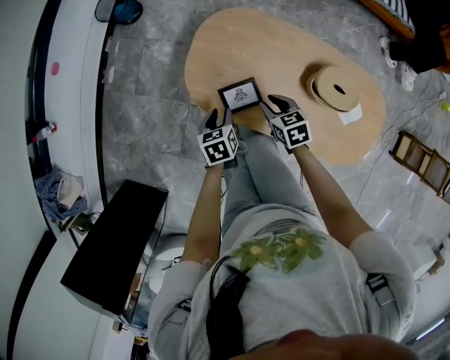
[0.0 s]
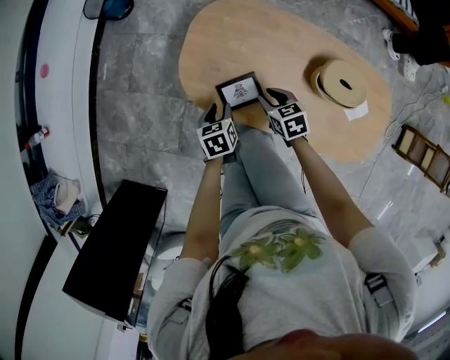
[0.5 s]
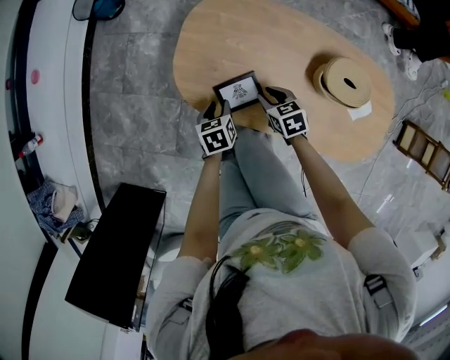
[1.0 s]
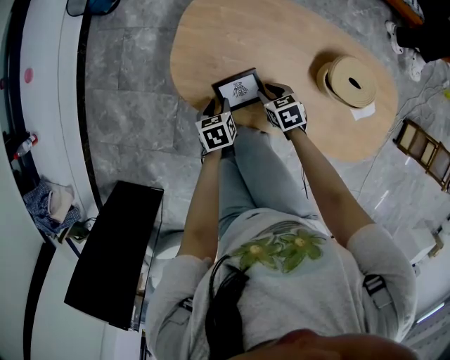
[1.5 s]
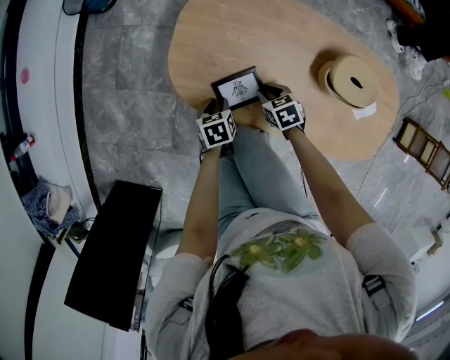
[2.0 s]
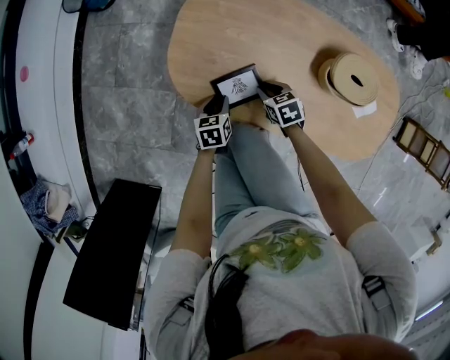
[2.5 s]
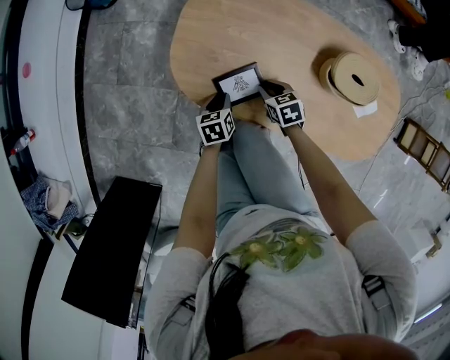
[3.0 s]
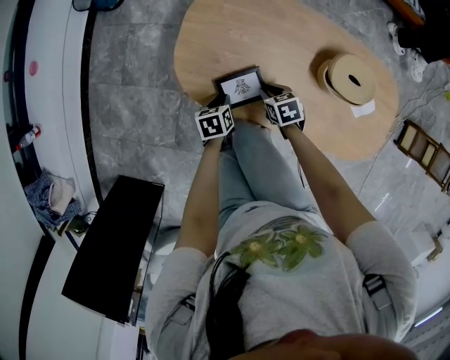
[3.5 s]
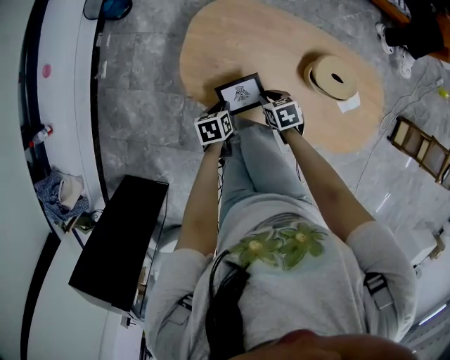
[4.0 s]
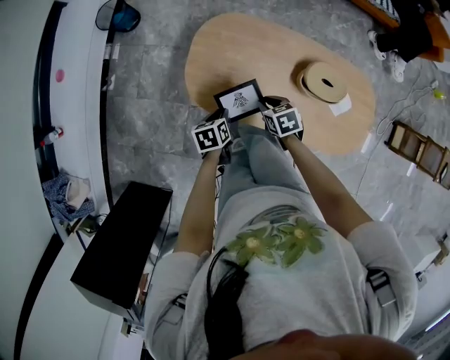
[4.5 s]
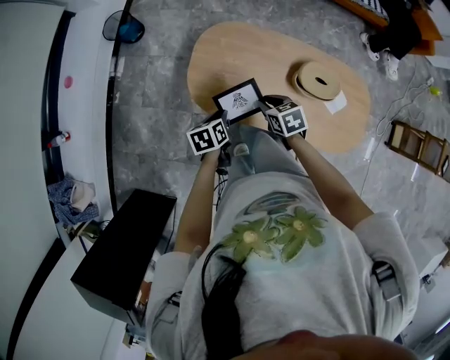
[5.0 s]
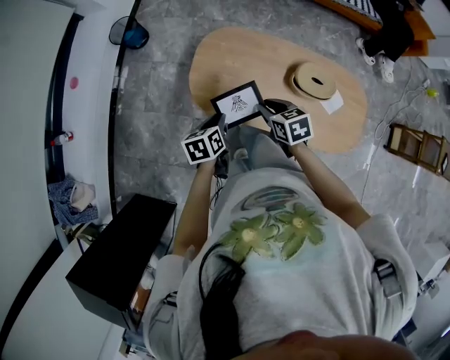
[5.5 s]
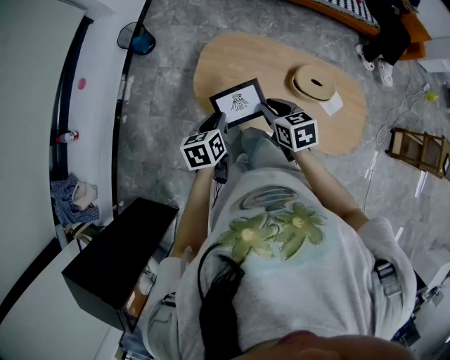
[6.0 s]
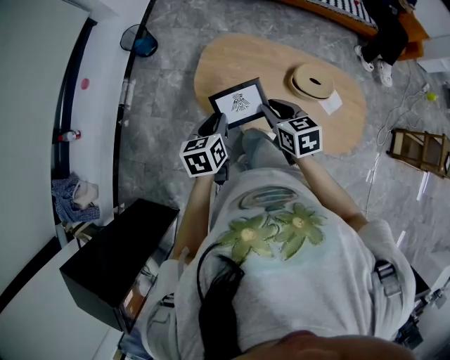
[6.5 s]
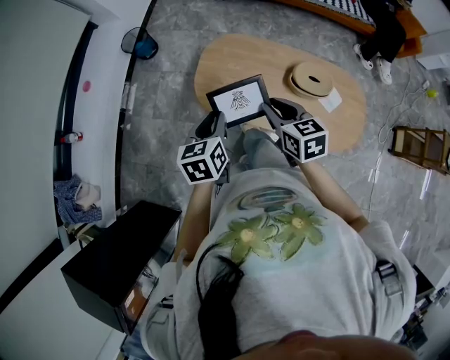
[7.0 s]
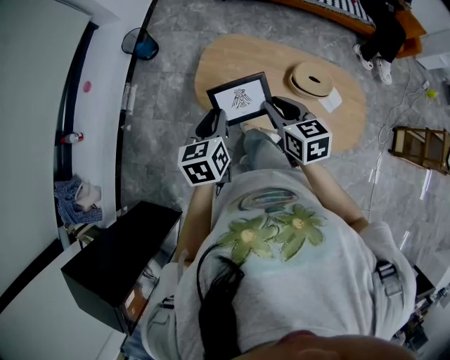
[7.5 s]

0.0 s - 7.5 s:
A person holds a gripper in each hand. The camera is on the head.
0.0 s - 2.0 s: Both grippers travel together downward, roughly 15 cm.
2.0 s - 4.0 s: Both grippers travel together upward, roughly 10 cm.
4.0 s - 5.5 s: The grippers both shift upward by some 20 cm.
5.5 s - 7.5 s: The grippers both shift upward by approximately 15 cm. The left gripper changes its angle by some 20 degrees, while the right gripper rotates some 20 degrees.

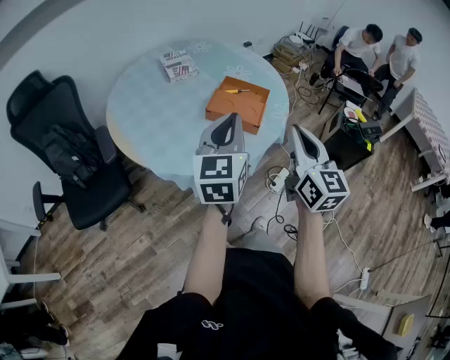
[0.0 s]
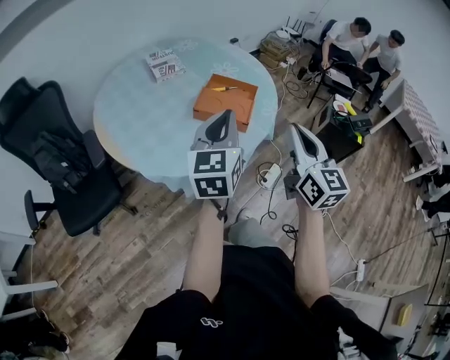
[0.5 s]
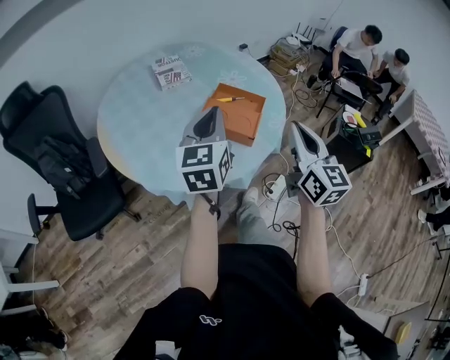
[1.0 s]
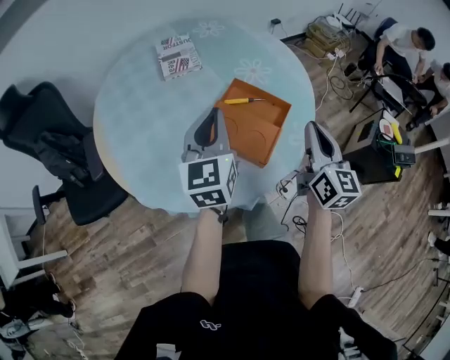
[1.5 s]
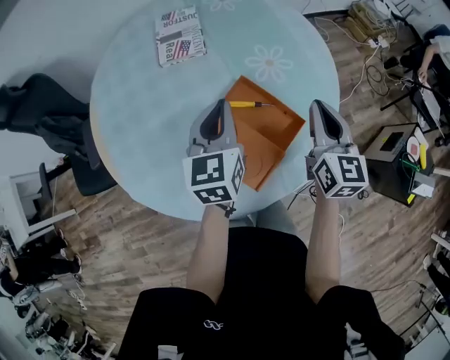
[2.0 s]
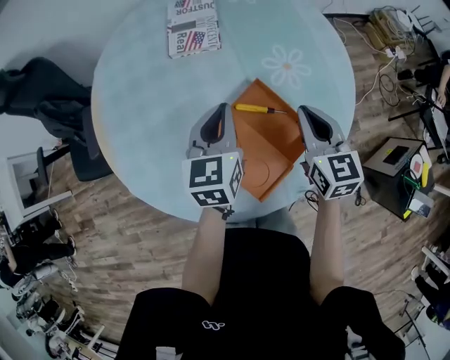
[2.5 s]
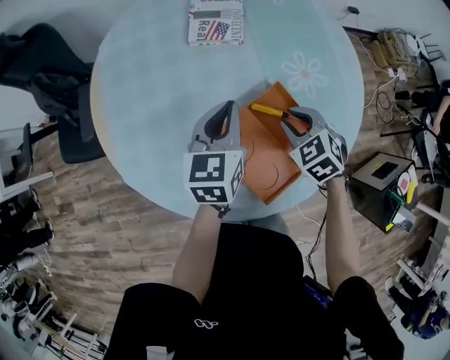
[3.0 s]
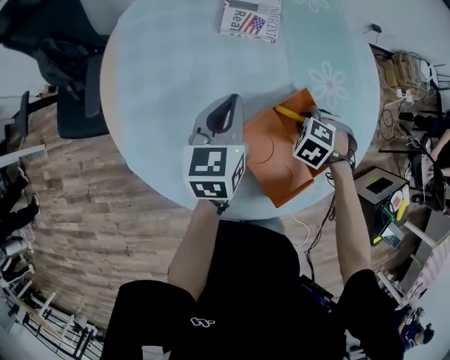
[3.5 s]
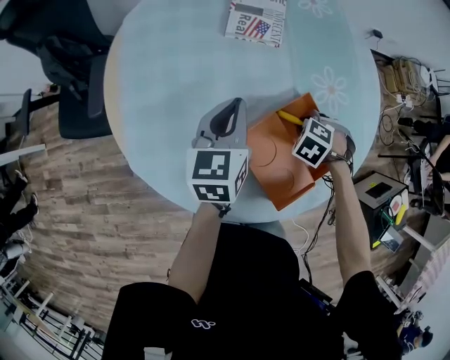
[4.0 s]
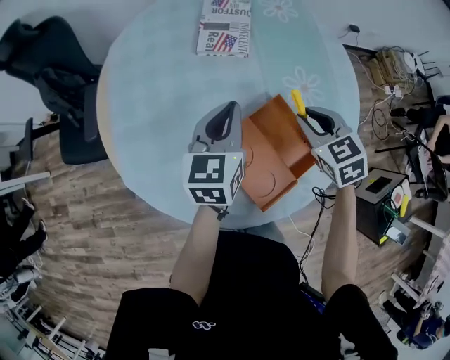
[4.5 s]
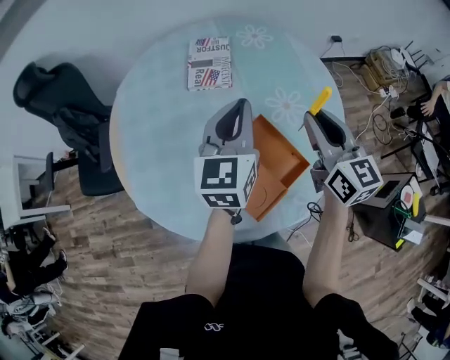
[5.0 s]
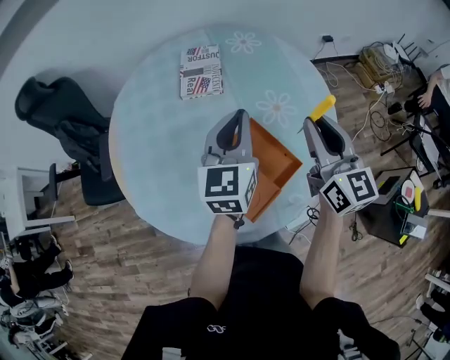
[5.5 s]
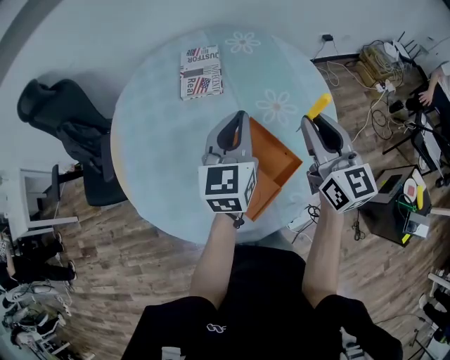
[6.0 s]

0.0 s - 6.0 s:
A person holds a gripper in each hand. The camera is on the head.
0.0 s - 2.0 s: The two grippers go about 40 cm forward. The left gripper swivels about 30 degrees.
2.0 s - 4.0 s: The right gripper heads downward, covering some 20 cm, and angles its fingers downward, by about 70 degrees; the left gripper shifts by about 15 cm.
4.0 s - 6.0 s: The left gripper changes place by roughly 25 cm, and changes its angle by roughly 20 degrees. The right gripper is displaced upward by some 30 cm, and angles its fingers upward, by about 80 degrees.

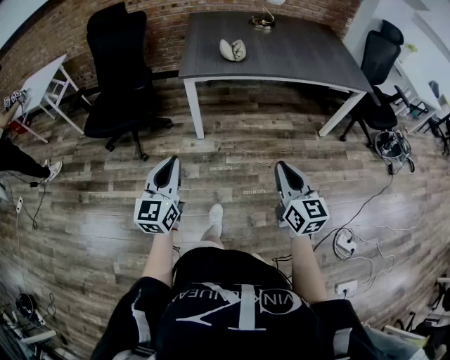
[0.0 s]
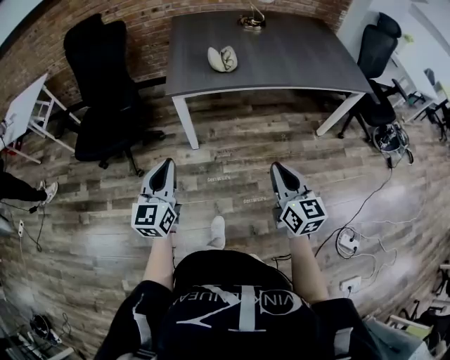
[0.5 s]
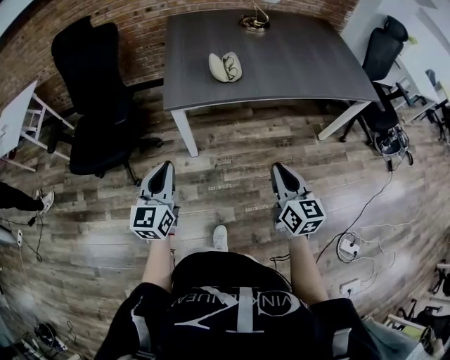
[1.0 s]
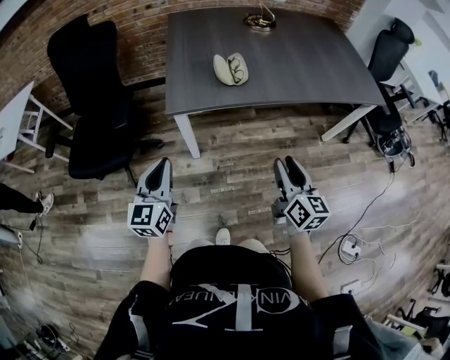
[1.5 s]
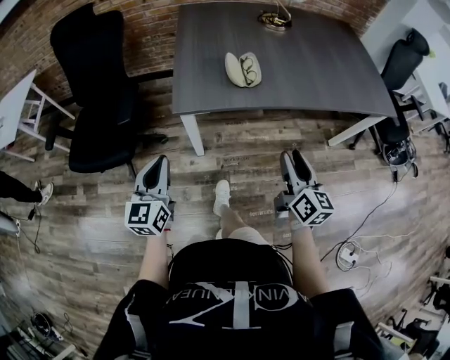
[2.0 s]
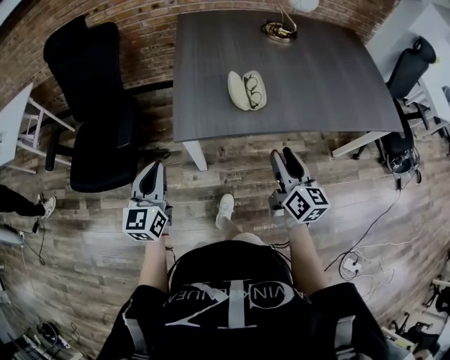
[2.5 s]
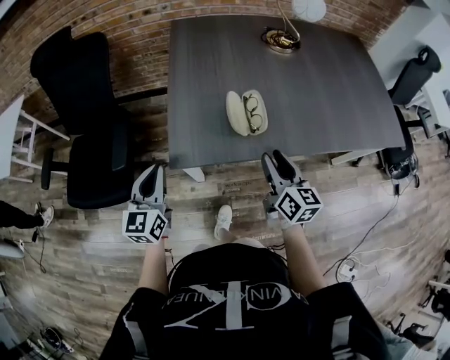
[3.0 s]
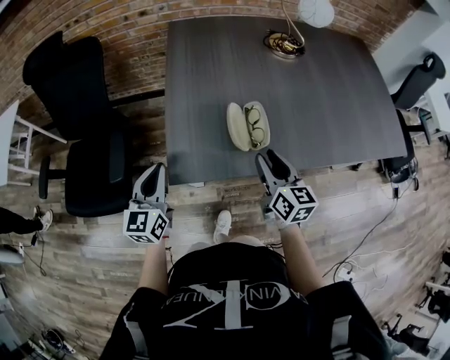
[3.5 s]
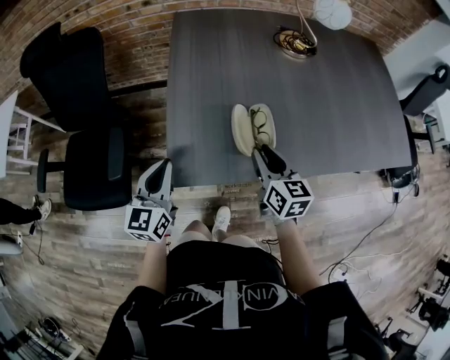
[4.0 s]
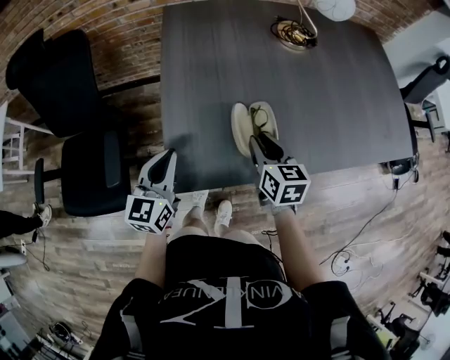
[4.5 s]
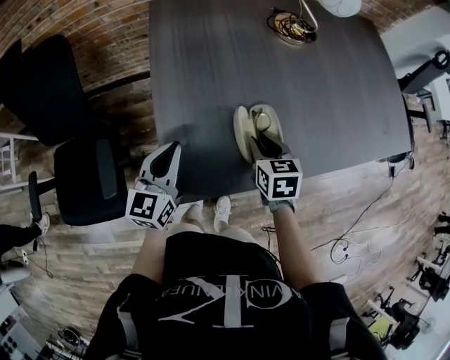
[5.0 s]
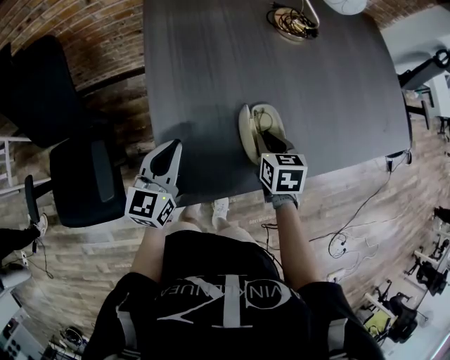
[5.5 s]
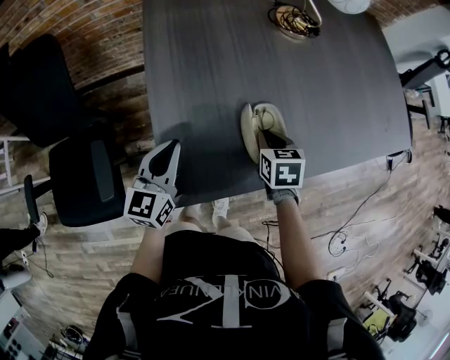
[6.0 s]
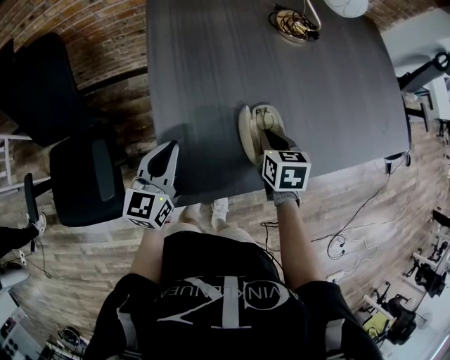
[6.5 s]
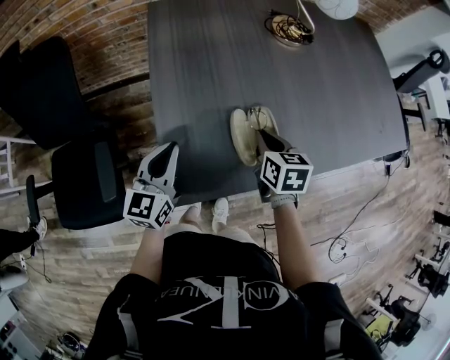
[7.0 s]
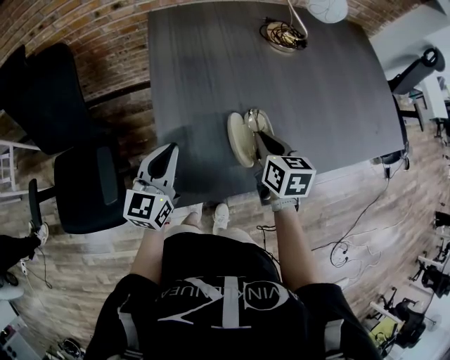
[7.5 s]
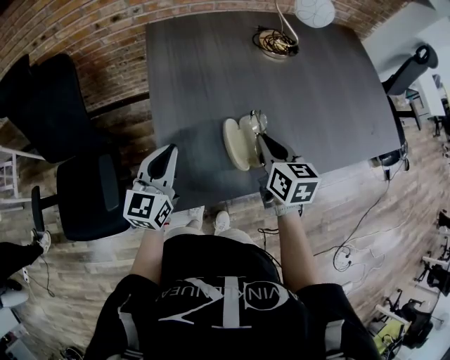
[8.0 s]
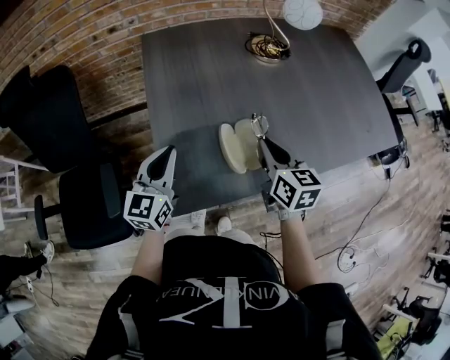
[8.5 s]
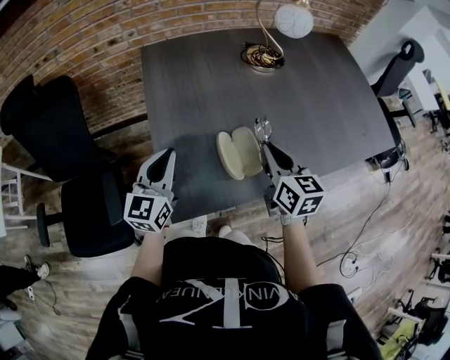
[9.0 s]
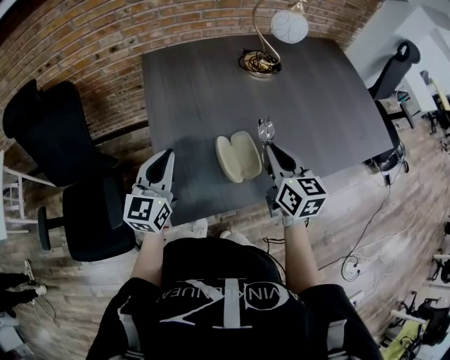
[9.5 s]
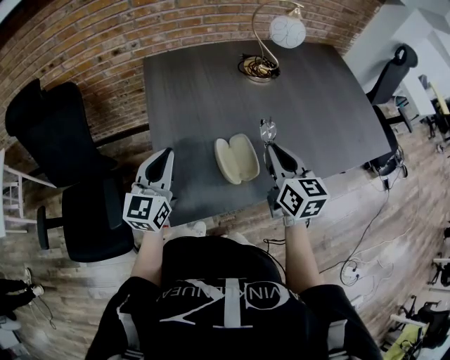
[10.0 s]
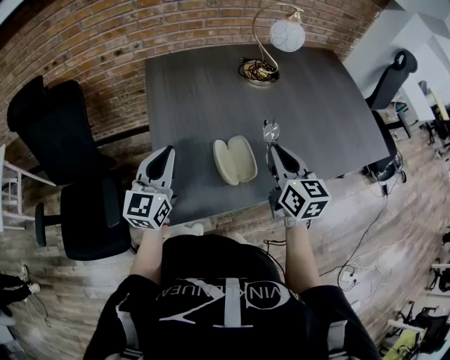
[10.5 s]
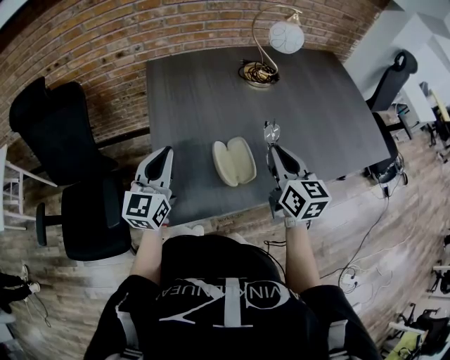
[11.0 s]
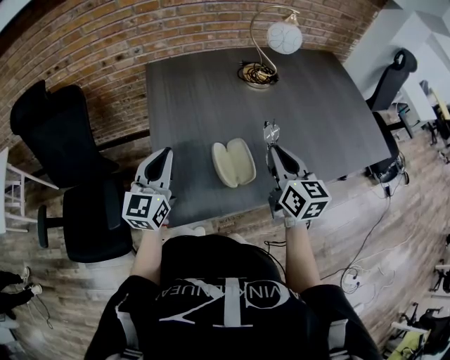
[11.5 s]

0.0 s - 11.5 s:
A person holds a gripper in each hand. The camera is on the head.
0.0 s - 2.0 s: Both grippers travel together forward, about 35 cm. The right gripper opens.
2.0 s - 4.0 s: Both grippers travel together forward, roughly 30 cm.
4.0 s - 6.0 s: The right gripper heads downward and forward, covering approximately 10 cm, and tilts its fingers approximately 30 degrees downward; the left gripper shifts about 10 cm forward.
6.0 s - 7.5 s: The right gripper goes some 10 cm upward.
7.5 s - 9.5 s: The left gripper goes roughly 5 cm upward. Meanwhile the right gripper moves upward and to the right, roughly 10 cm, and rotates roughly 20 degrees.
9.5 s - 11.5 s: The grippers stay close to where they were, moving slightly.

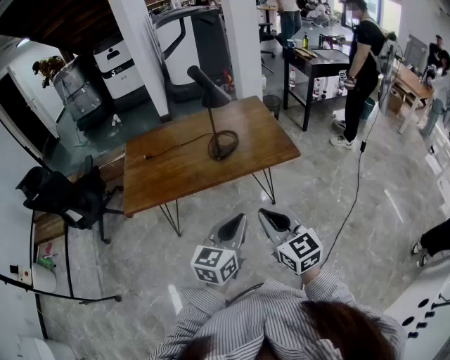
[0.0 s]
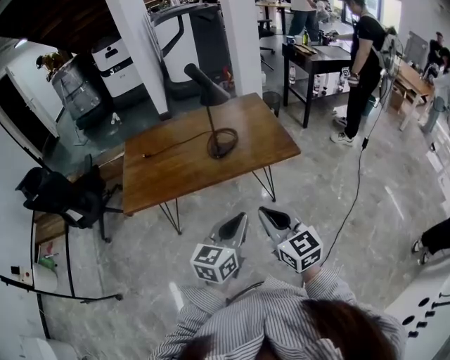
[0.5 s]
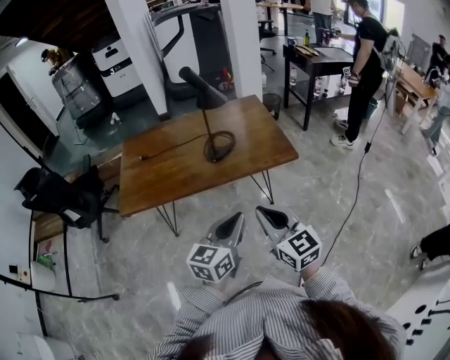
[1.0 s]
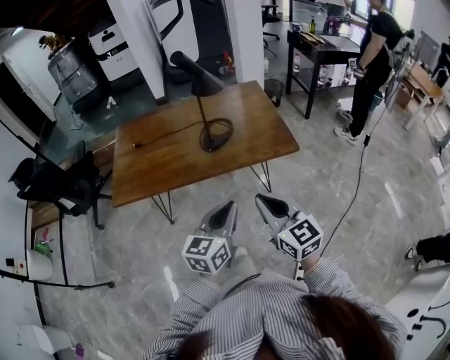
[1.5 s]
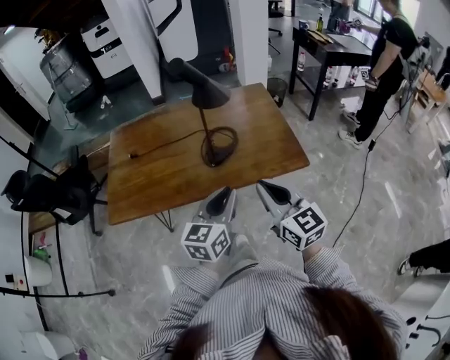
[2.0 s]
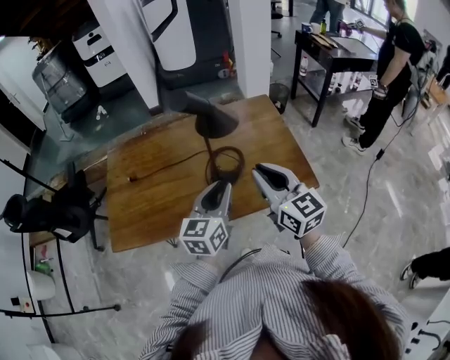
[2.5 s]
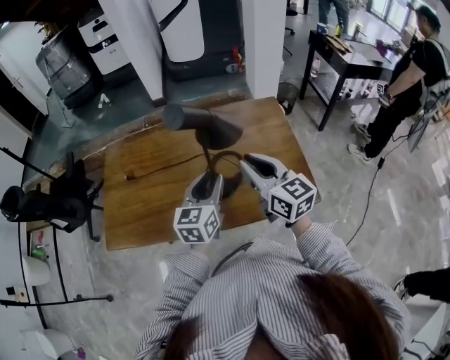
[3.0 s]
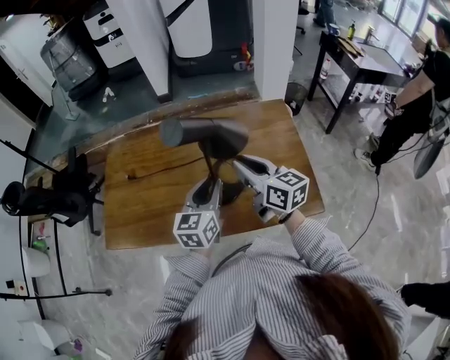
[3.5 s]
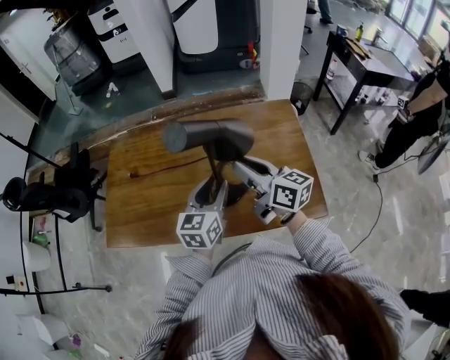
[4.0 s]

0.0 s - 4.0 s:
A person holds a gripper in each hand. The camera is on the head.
0.0 s - 2.0 s: The grippers both shift forward by about 20 cm.
2.0 s - 4.0 s: Both grippers move forward, approximately 30 cm. The right gripper rotates about 40 degrees; the left gripper opens its fingers.
